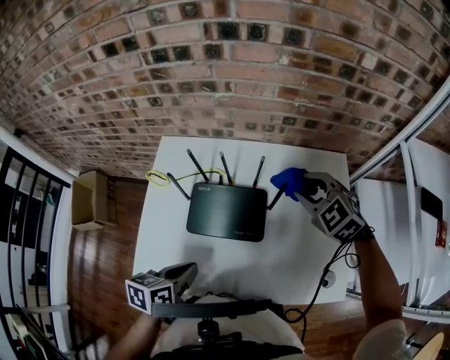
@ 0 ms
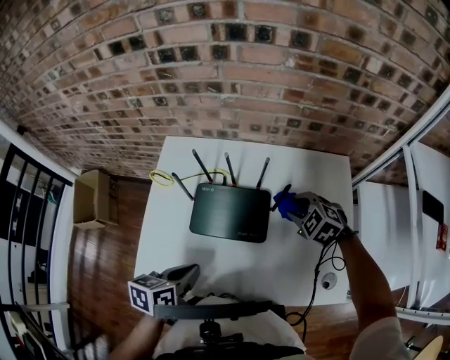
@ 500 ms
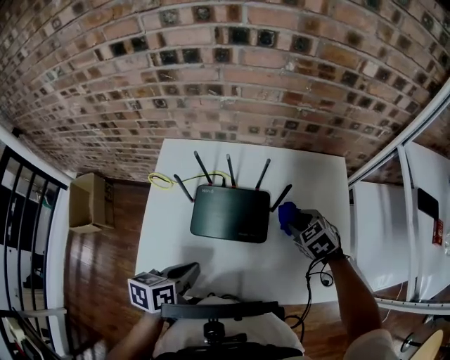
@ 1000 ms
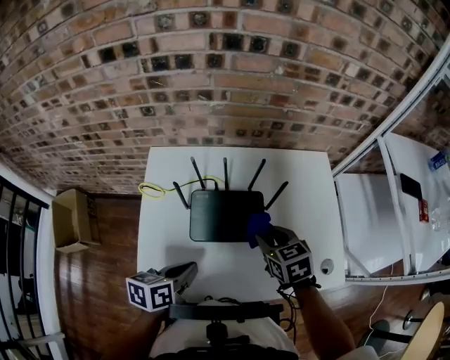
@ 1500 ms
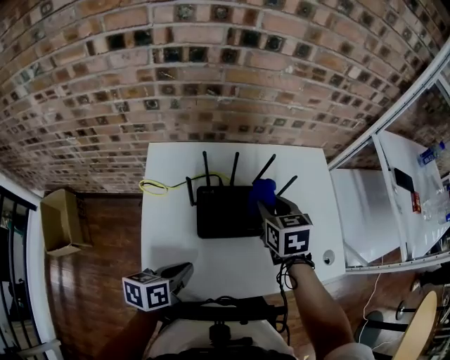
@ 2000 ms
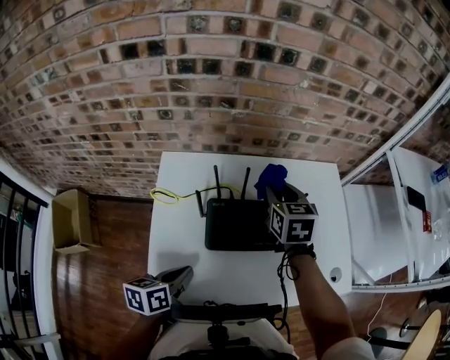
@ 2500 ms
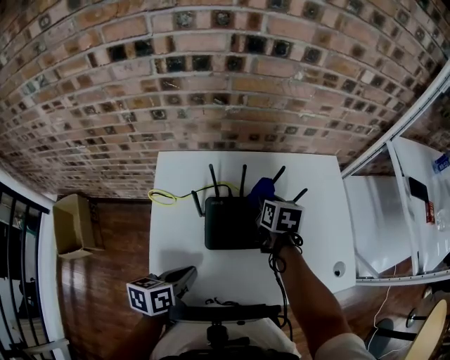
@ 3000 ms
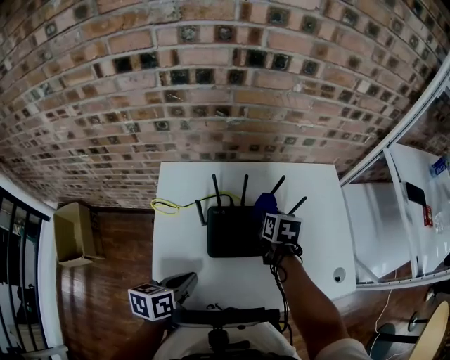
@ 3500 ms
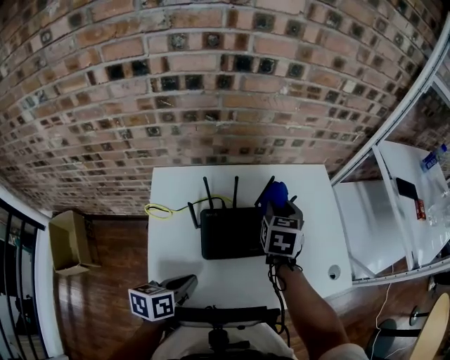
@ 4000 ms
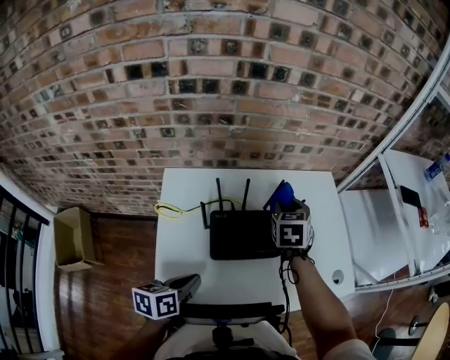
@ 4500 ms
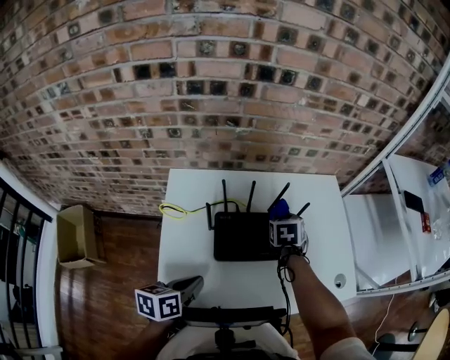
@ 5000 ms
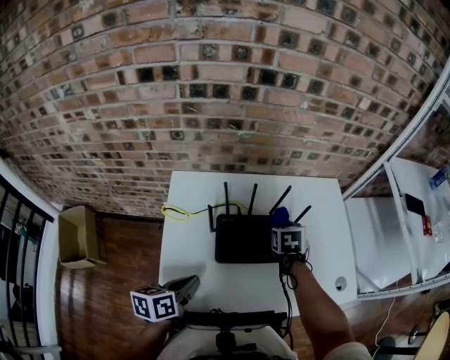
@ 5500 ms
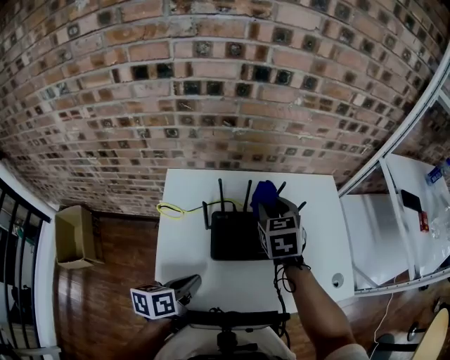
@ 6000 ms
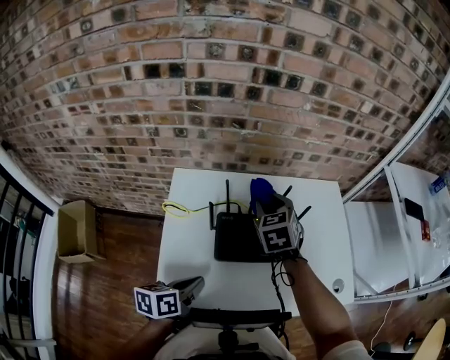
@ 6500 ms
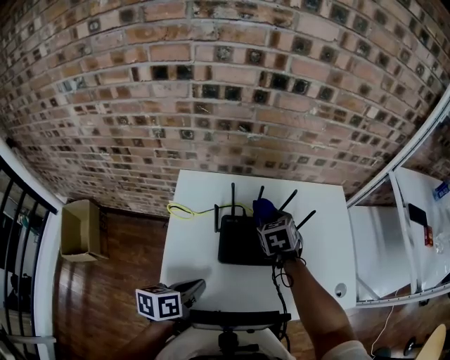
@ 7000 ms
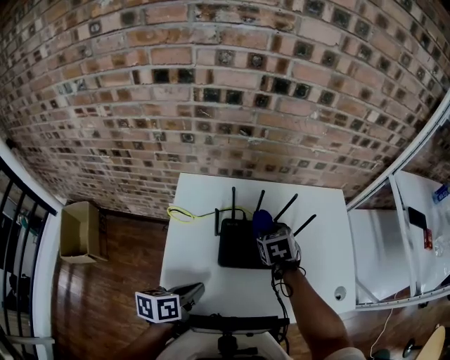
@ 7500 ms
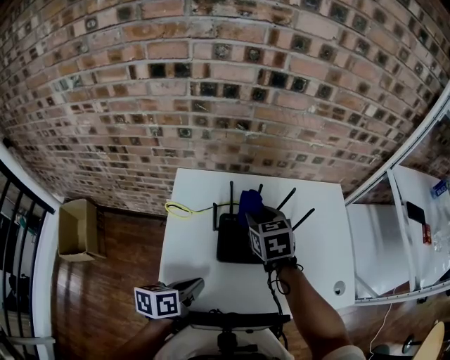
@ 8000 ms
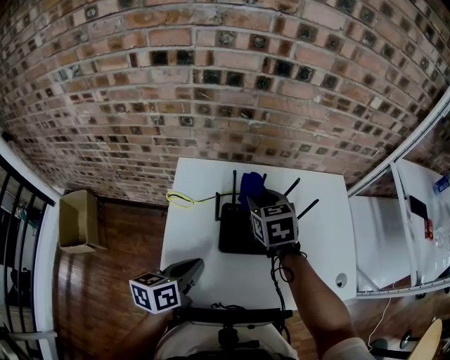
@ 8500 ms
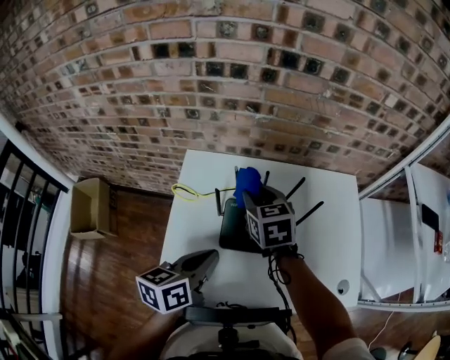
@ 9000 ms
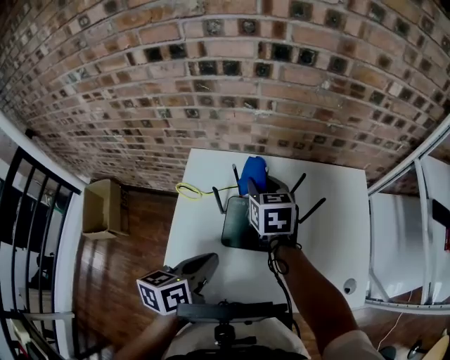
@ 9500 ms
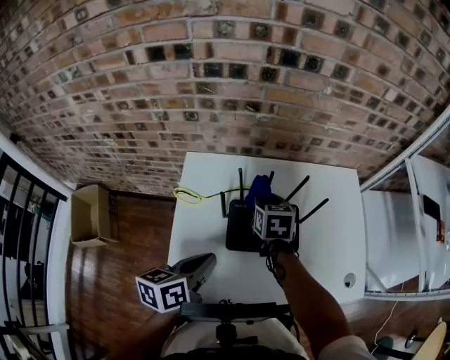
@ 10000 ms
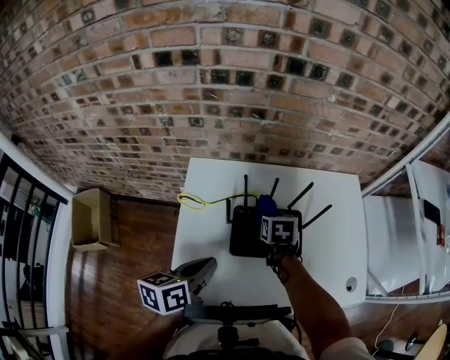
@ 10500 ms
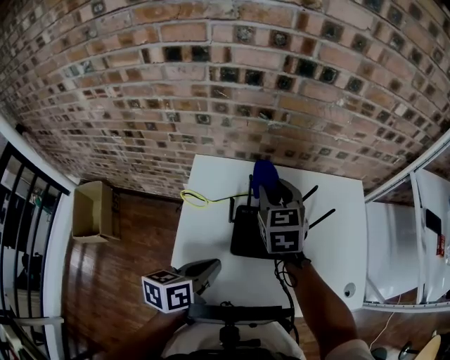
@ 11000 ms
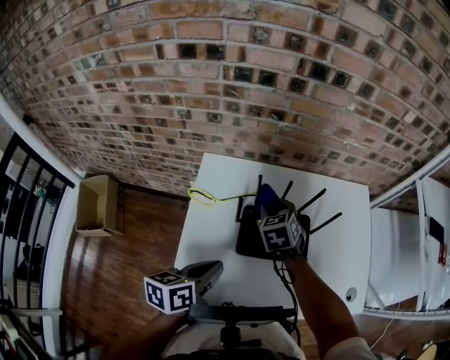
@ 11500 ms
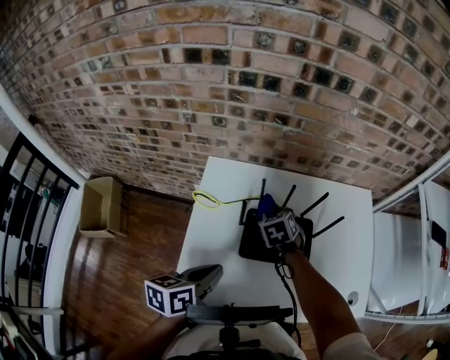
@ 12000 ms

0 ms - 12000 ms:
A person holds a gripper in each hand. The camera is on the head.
0 ms - 2000 ms: The left gripper ends up about 10 cm from where it was, while the right gripper goes downward and returns, about 10 cm each way, and twists roughly 50 degrees clockwise, seen from behind.
2000 ms - 4000 ms: The right gripper moves forward, some 5 cm, moves some 5 cm downward and comes back, and rotates some 20 degrees.
4000 ms - 6000 ms: The right gripper moves to the left, about 5 cm, reaches roughly 10 cm downward, then returns, and turns by roughly 20 degrees.
6000 ms - 8000 ms: The right gripper is displaced to the left by approximately 5 cm, and travels downward and back again, roughly 10 cm each way.
8000 ms - 10000 ms: The right gripper shifts by some 5 cm; the left gripper shifts approximately 10 cm upward and forward.
10000 ms - 12000 ms: The right gripper swings up and down, some 15 cm each way, with 2 reversals, and changes its angle by about 30 degrees.

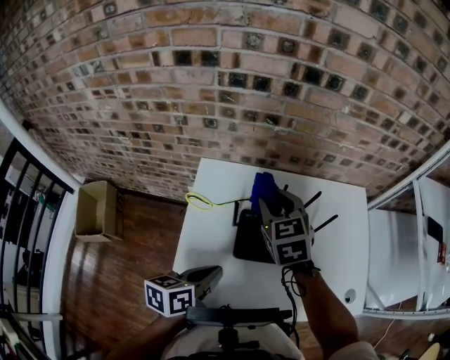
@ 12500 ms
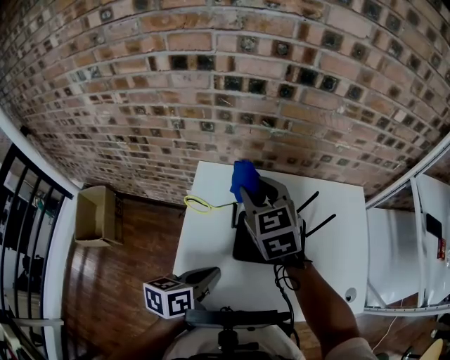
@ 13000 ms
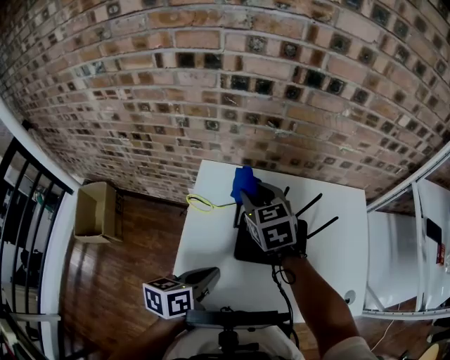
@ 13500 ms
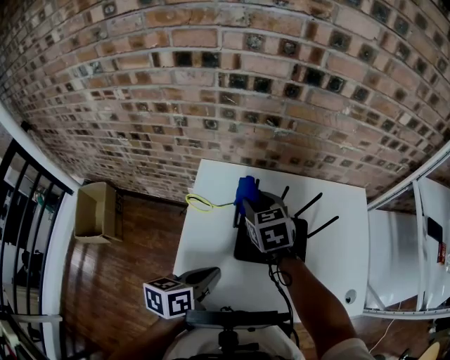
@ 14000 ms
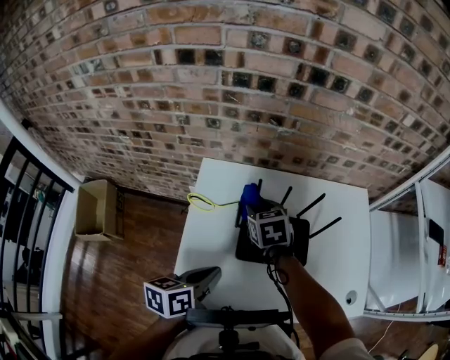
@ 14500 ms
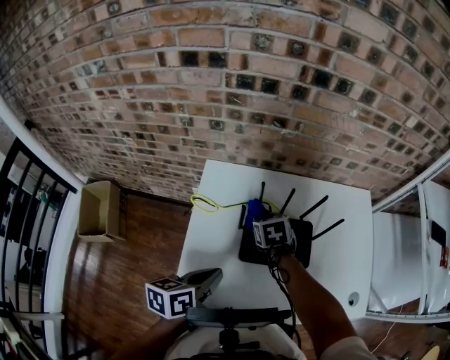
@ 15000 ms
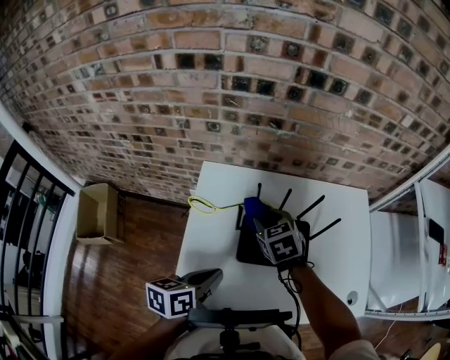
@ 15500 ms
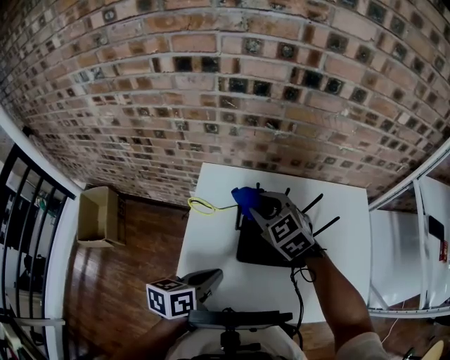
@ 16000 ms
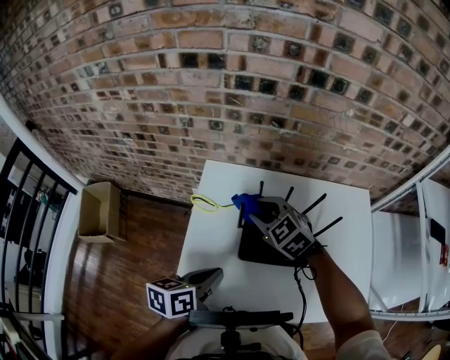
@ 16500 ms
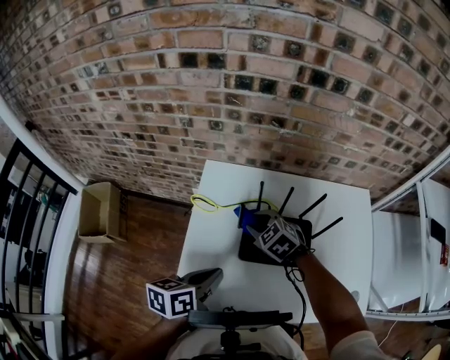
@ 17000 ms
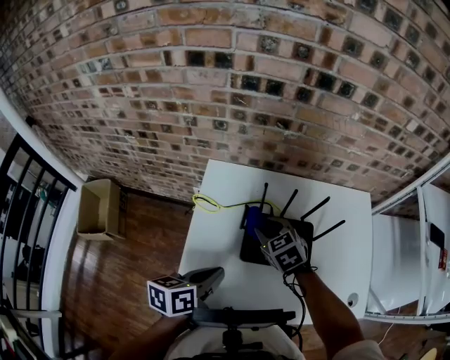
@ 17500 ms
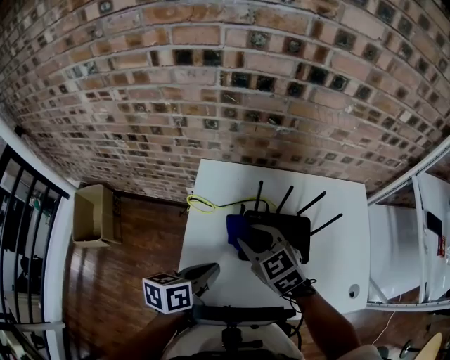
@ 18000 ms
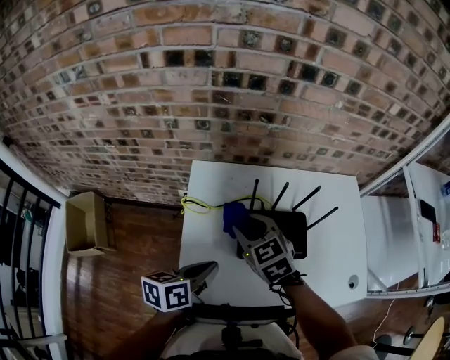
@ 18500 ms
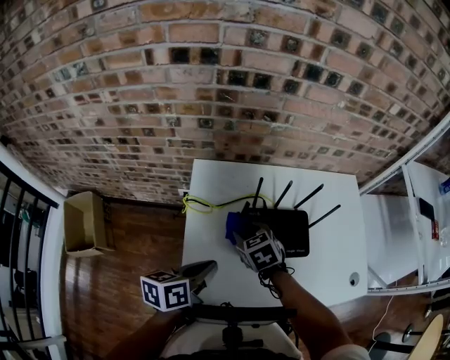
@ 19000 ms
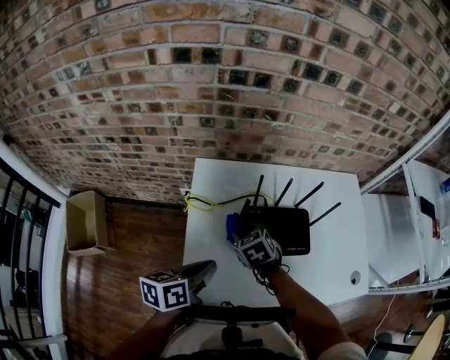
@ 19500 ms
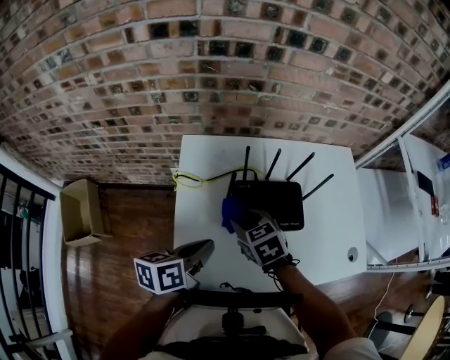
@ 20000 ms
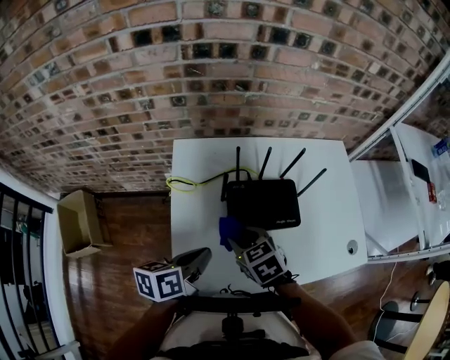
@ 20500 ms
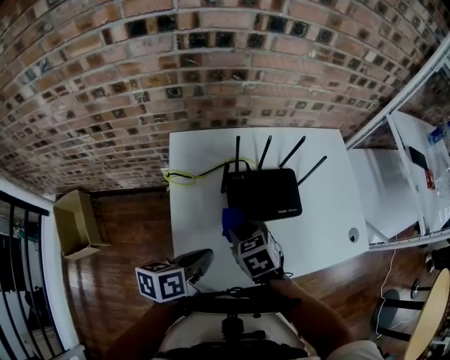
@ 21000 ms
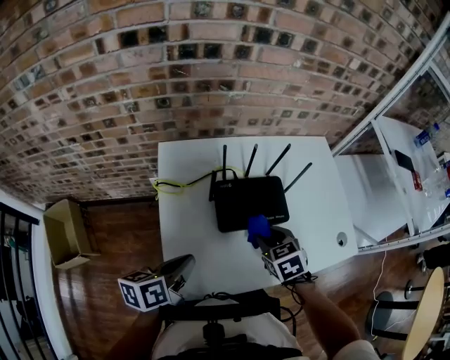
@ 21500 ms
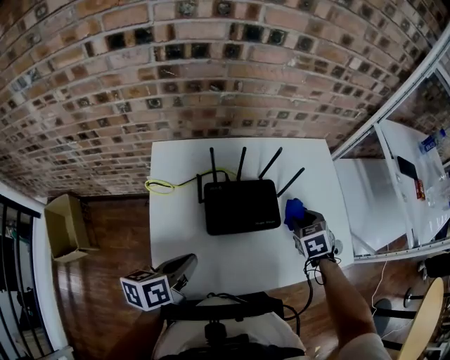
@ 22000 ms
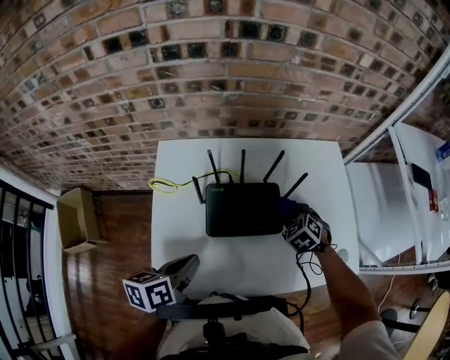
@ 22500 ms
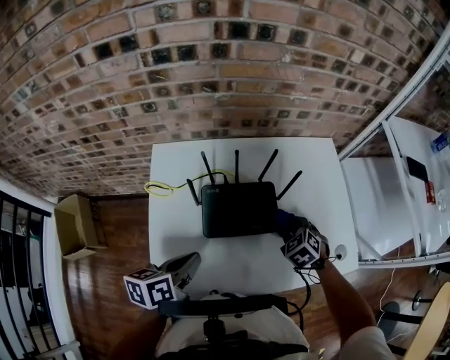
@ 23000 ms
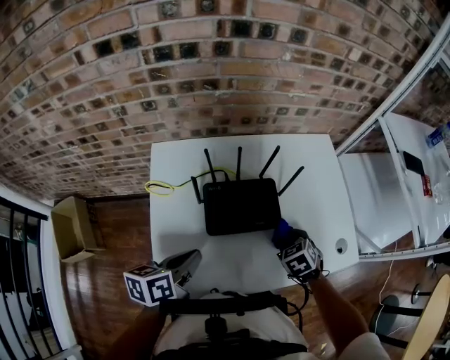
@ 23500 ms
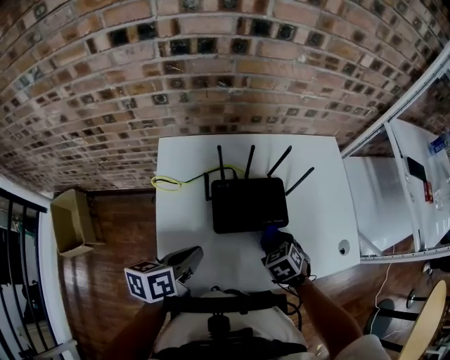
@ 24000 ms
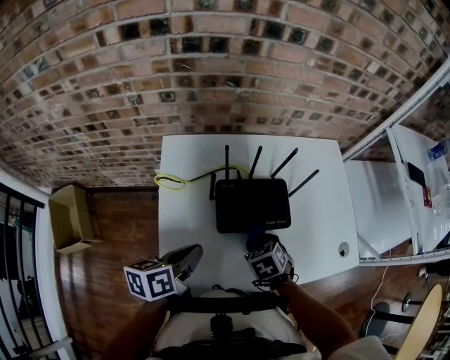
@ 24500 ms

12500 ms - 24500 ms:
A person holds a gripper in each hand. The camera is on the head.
12500 ms - 14500 ms: The right gripper heads downward, covering some 10 cm.
14500 ms - 16500 ms: The right gripper reaches some 5 cm upward, then returns, and rotates about 40 degrees.
16500 ms - 18500 ms: The right gripper travels downward and back again, roughly 10 cm each way, and turns by roughly 20 degrees.
18500 ms - 20500 ms: The right gripper is displaced backward and downward by roughly 15 cm.
20500 ms - 22500 ms: The left gripper shifts approximately 5 cm to the right. The right gripper travels to the right and forward by some 30 cm, and rotates roughly 30 degrees.
22500 ms - 24500 ms: The right gripper is displaced backward and to the left by some 20 cm, and rotates approximately 20 degrees.

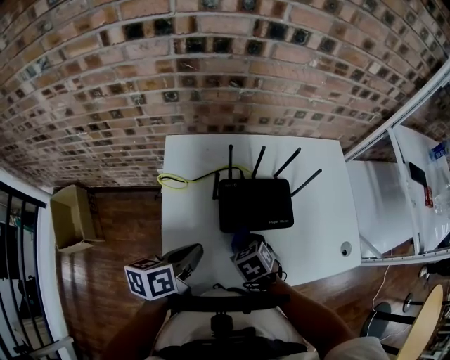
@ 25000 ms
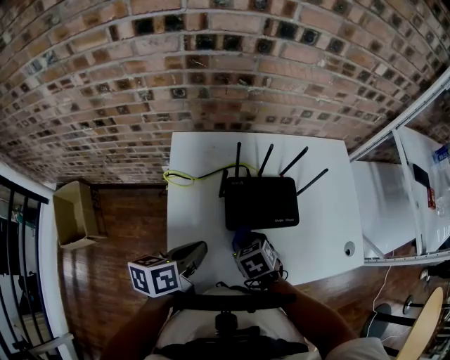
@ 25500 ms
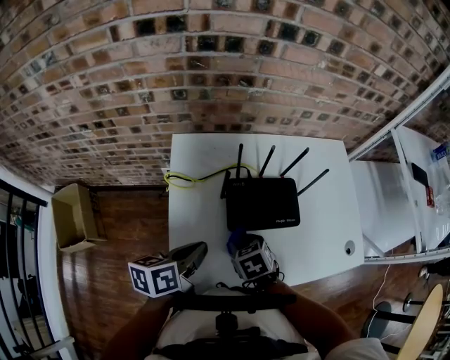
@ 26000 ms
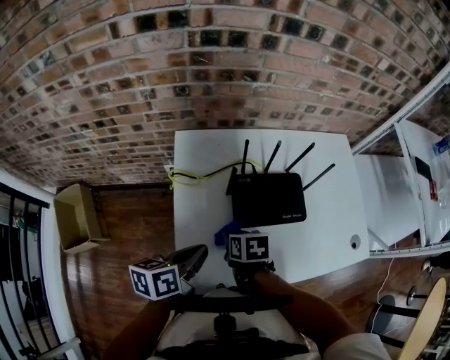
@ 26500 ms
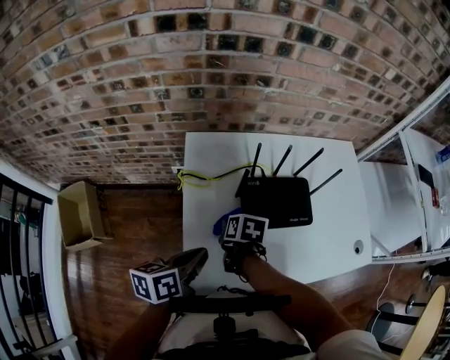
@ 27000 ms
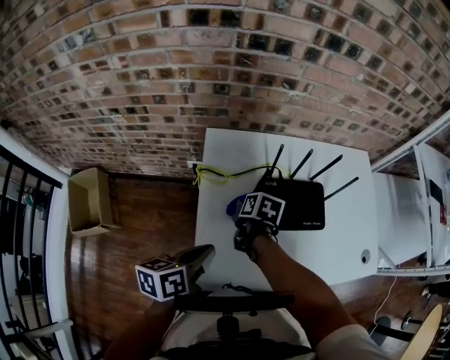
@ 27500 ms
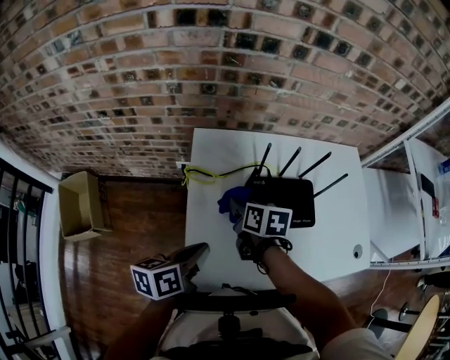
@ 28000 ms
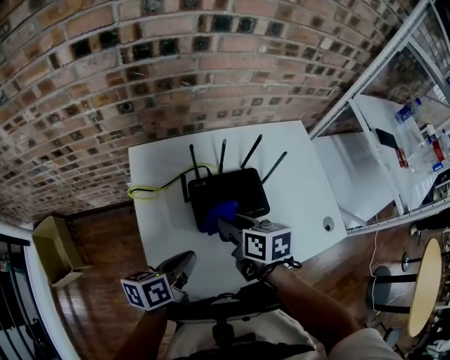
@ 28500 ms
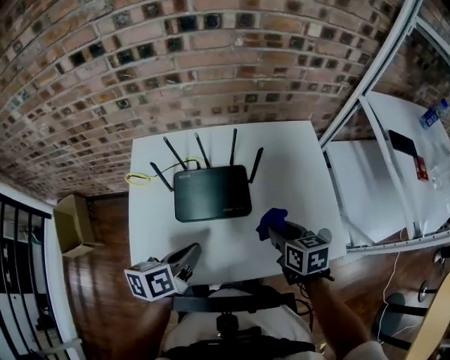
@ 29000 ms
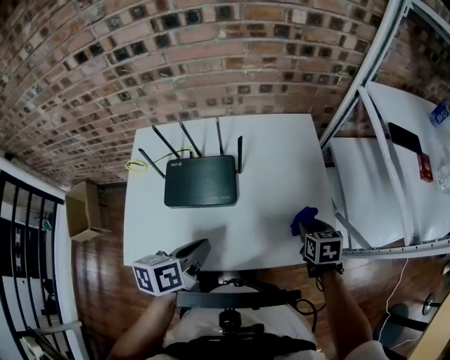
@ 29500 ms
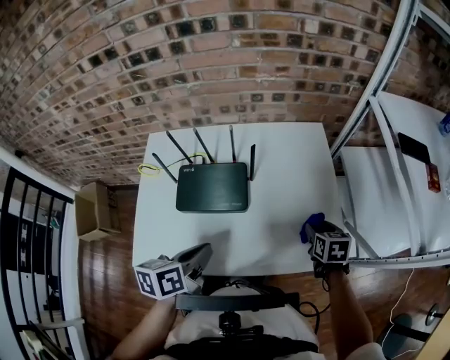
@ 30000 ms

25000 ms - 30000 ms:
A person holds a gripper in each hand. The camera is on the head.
25000 ms - 27500 ms: The left gripper shifts roughly 10 cm to the left. Meanwhile the right gripper goes some 15 cm to the left and forward, and twists roughly 50 degrees clockwise, seen from behind.
27500 ms - 30000 ms: The left gripper shifts approximately 35 cm to the right; the right gripper moves to the right, approximately 60 cm, and changes its angle by about 30 degrees.
